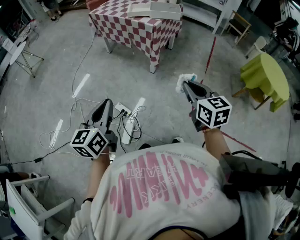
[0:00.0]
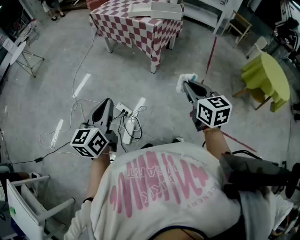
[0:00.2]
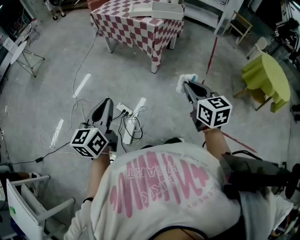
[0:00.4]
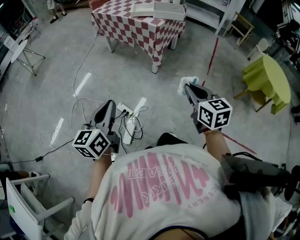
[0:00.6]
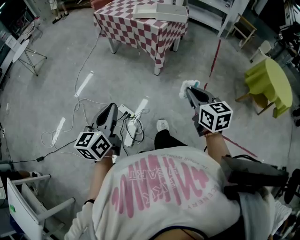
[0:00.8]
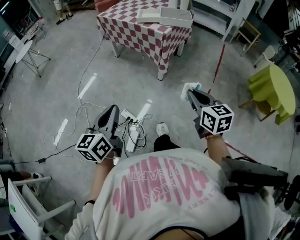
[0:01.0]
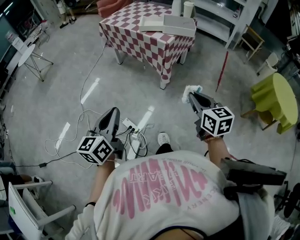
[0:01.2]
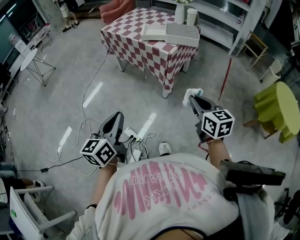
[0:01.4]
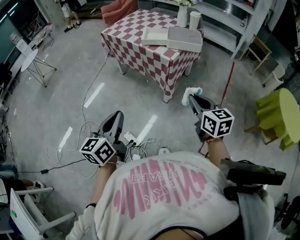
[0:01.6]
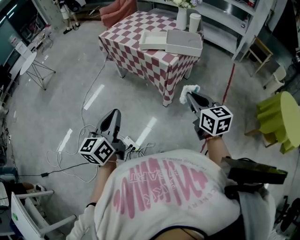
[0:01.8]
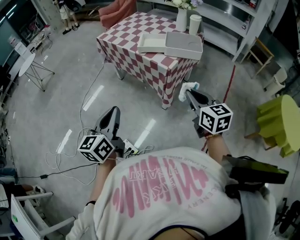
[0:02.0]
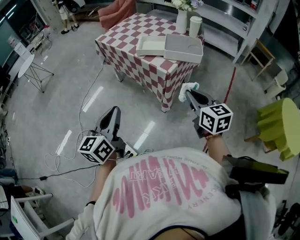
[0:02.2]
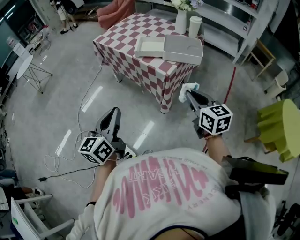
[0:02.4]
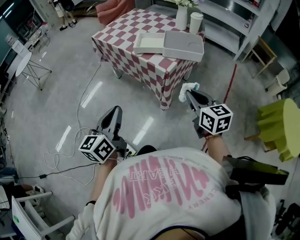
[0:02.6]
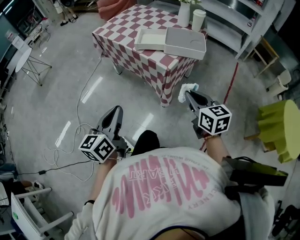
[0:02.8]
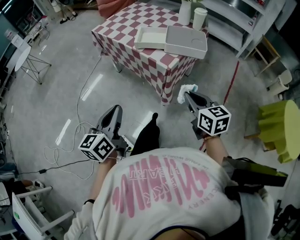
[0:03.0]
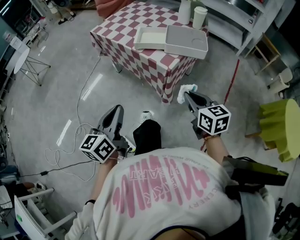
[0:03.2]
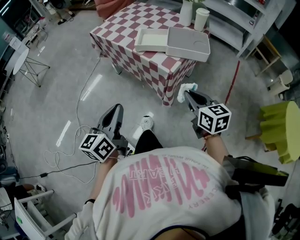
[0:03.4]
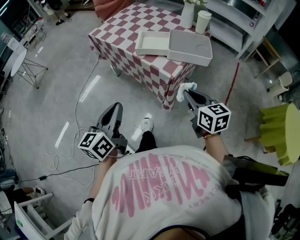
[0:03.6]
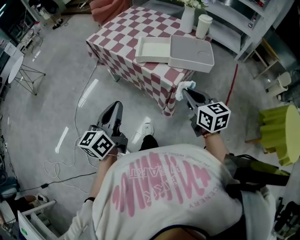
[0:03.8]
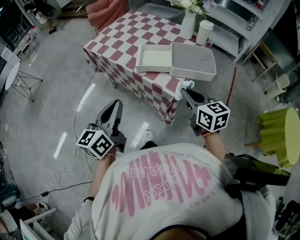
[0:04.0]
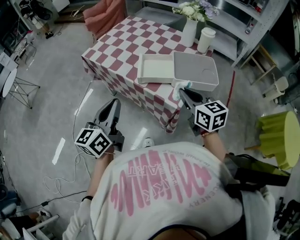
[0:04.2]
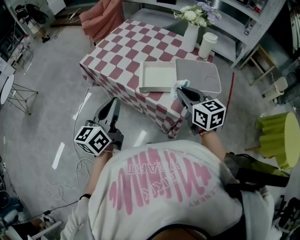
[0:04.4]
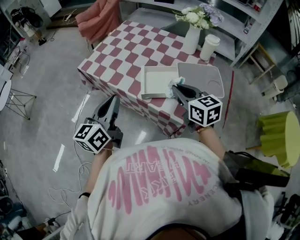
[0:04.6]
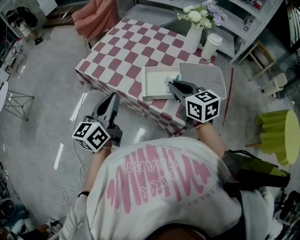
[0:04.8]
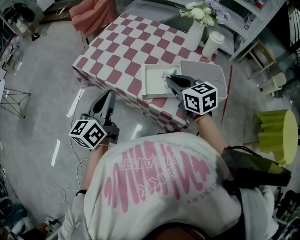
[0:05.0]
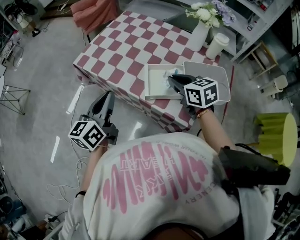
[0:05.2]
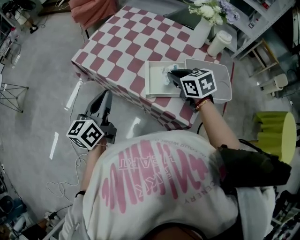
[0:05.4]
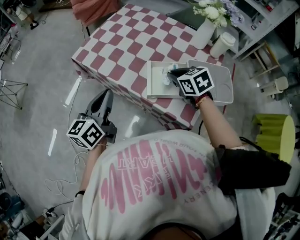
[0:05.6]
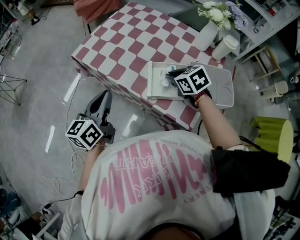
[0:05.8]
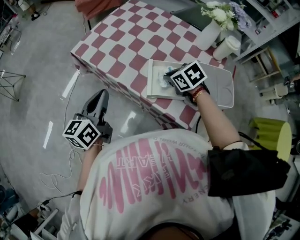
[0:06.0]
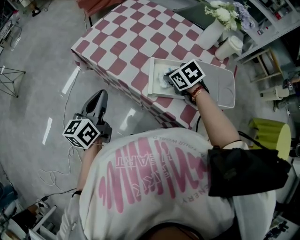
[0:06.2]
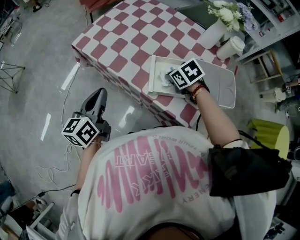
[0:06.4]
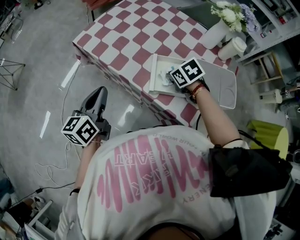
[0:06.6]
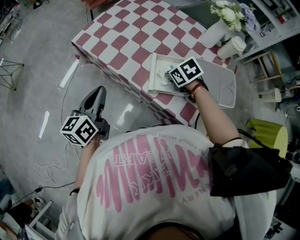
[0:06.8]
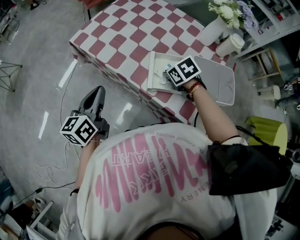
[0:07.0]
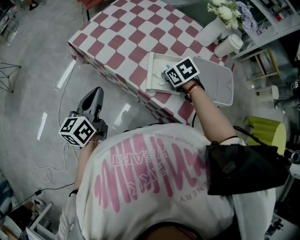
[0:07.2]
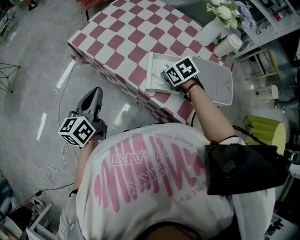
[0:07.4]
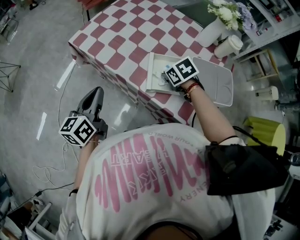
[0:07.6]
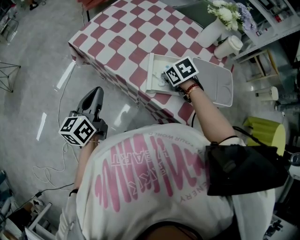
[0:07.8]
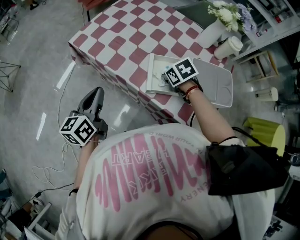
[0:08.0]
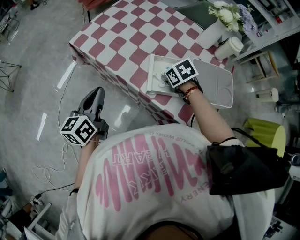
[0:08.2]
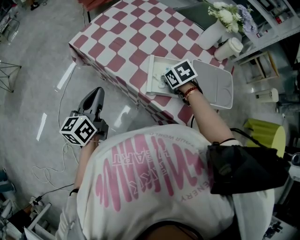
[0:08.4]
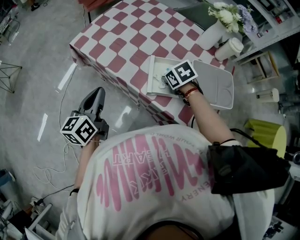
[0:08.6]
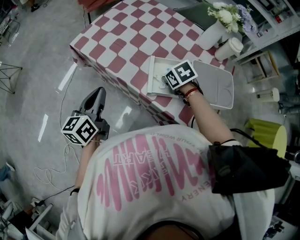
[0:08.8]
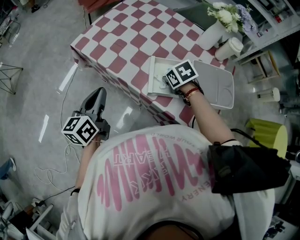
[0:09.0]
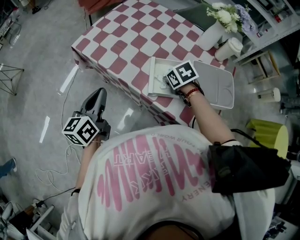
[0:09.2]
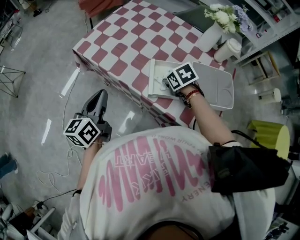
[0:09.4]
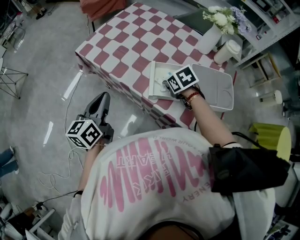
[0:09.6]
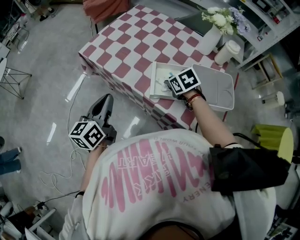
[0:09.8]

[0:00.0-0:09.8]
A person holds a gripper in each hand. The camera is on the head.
0:00.0 to 0:01.4: Both grippers travel together forward, approximately 20 cm.
0:01.4 to 0:02.8: Both grippers travel together forward, roughly 20 cm.
0:02.8 to 0:04.2: The grippers both shift forward by some 30 cm.
0:04.2 to 0:05.6: The grippers both shift forward by roughly 20 cm. The right gripper rotates about 30 degrees.
0:05.6 to 0:07.0: The left gripper ends up some 5 cm from where it was; the right gripper is displaced downward by about 10 cm, and swivels about 20 degrees.
0:07.0 to 0:08.4: The two grippers keep their place.
0:08.4 to 0:09.8: There are only small adjustments of the grippers.

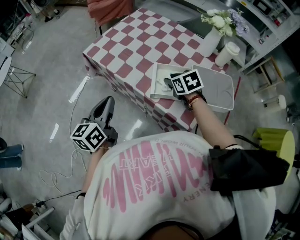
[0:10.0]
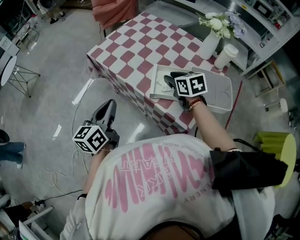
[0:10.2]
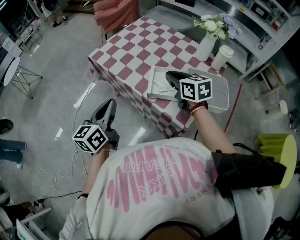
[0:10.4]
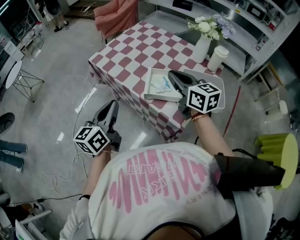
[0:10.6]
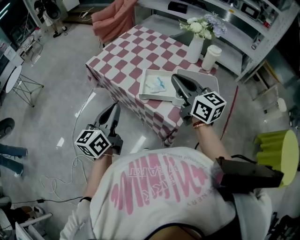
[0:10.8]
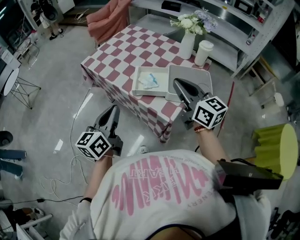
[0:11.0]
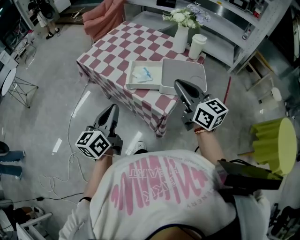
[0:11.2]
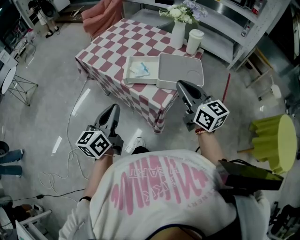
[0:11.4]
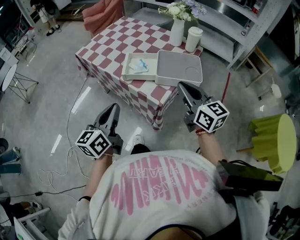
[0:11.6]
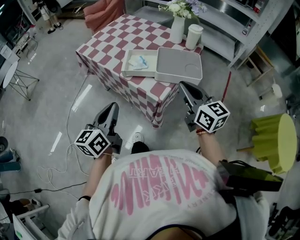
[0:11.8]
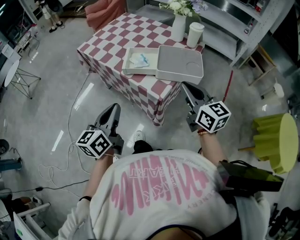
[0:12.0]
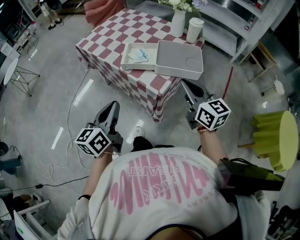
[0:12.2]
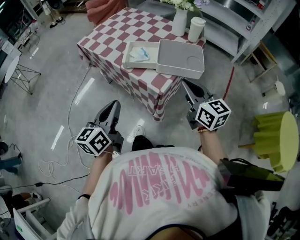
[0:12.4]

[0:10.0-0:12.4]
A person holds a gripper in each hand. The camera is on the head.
0:10.0 to 0:11.2: The left gripper travels backward and to the right by about 20 cm. The right gripper is displaced backward, upward and to the right by some 30 cm, angles its fingers upward, by about 50 degrees, and closes.
0:11.2 to 0:12.4: The right gripper heads backward and downward, covering some 10 cm. Meanwhile the left gripper moves backward, some 10 cm.

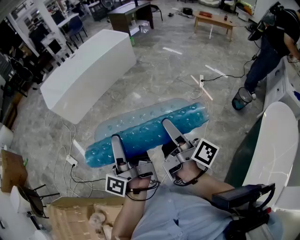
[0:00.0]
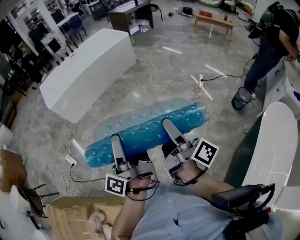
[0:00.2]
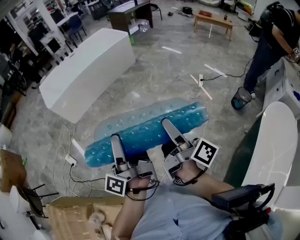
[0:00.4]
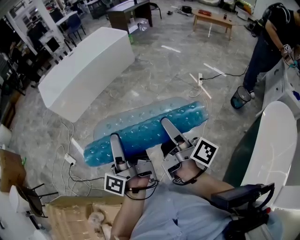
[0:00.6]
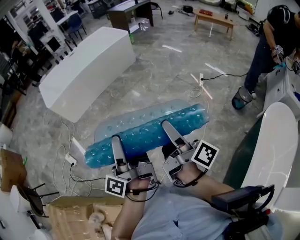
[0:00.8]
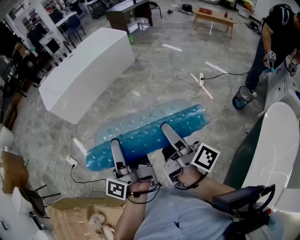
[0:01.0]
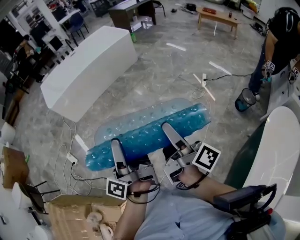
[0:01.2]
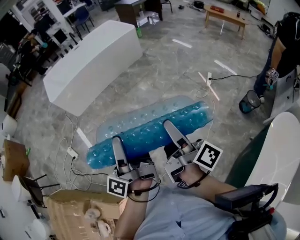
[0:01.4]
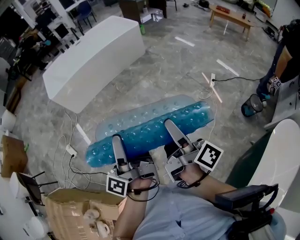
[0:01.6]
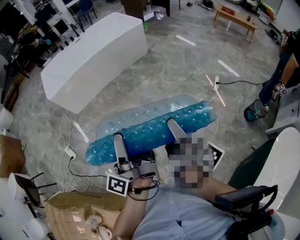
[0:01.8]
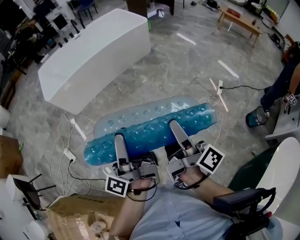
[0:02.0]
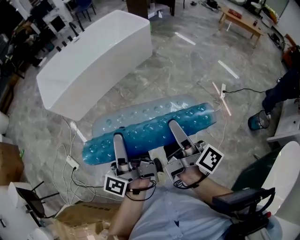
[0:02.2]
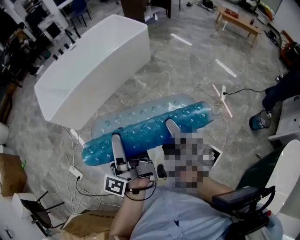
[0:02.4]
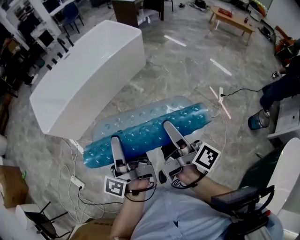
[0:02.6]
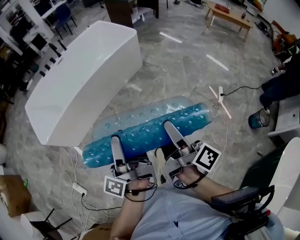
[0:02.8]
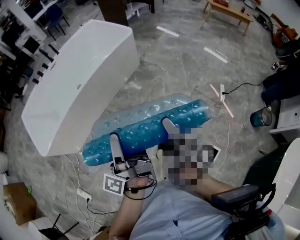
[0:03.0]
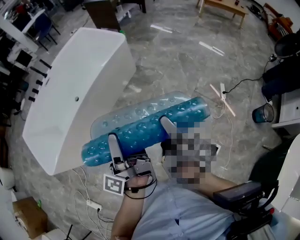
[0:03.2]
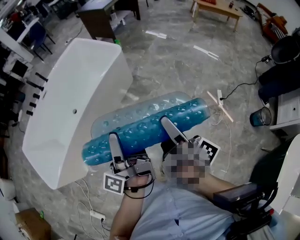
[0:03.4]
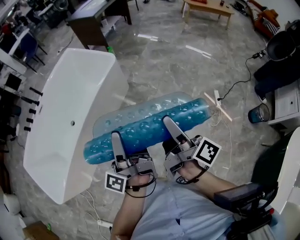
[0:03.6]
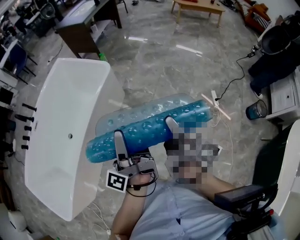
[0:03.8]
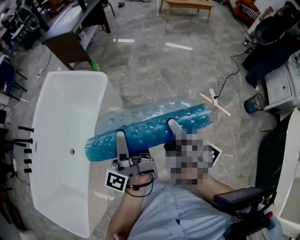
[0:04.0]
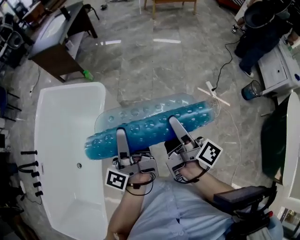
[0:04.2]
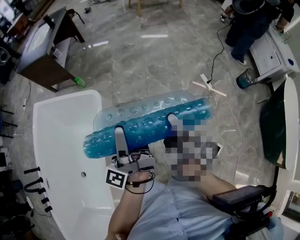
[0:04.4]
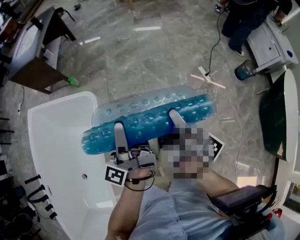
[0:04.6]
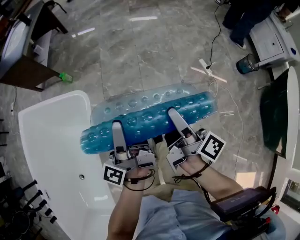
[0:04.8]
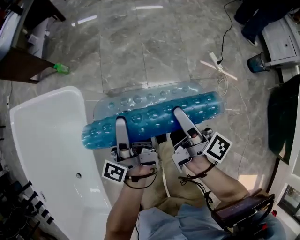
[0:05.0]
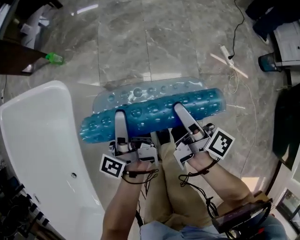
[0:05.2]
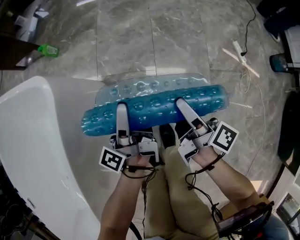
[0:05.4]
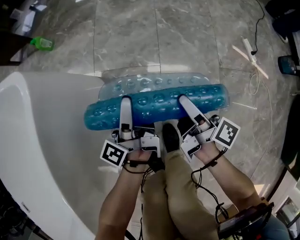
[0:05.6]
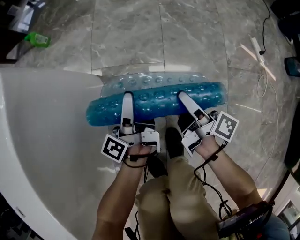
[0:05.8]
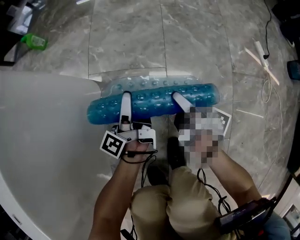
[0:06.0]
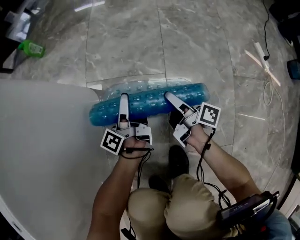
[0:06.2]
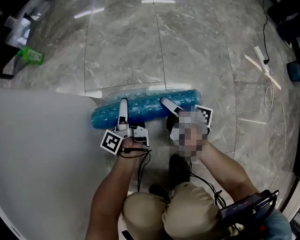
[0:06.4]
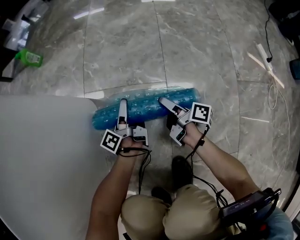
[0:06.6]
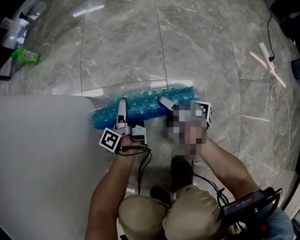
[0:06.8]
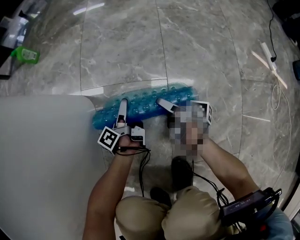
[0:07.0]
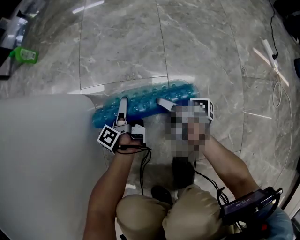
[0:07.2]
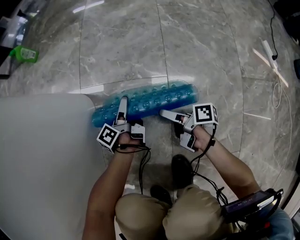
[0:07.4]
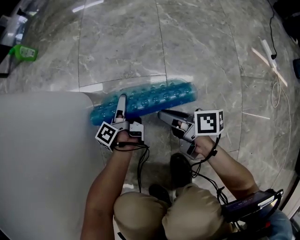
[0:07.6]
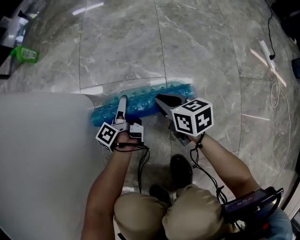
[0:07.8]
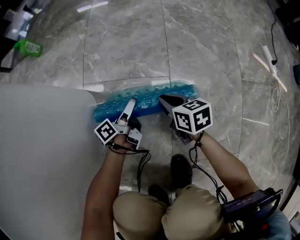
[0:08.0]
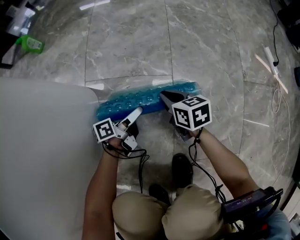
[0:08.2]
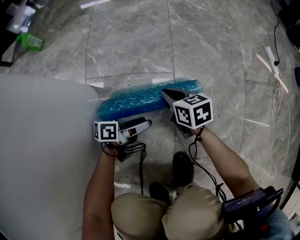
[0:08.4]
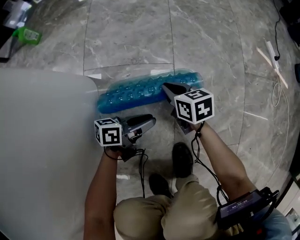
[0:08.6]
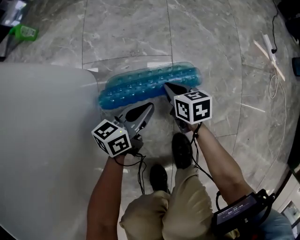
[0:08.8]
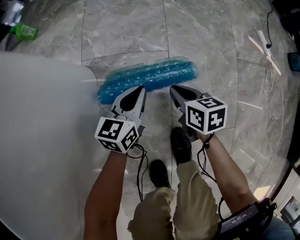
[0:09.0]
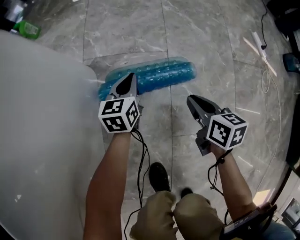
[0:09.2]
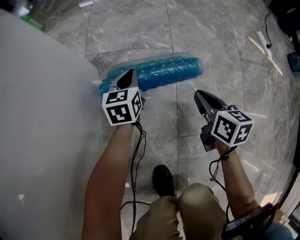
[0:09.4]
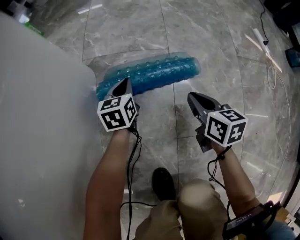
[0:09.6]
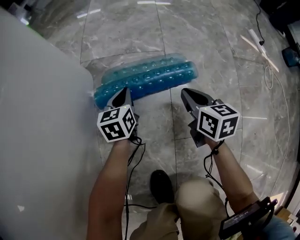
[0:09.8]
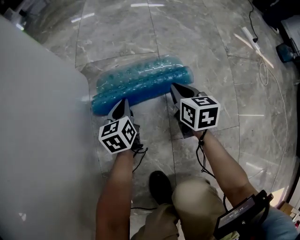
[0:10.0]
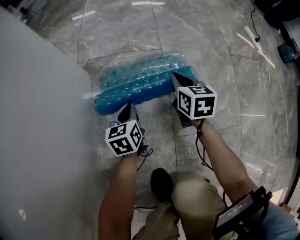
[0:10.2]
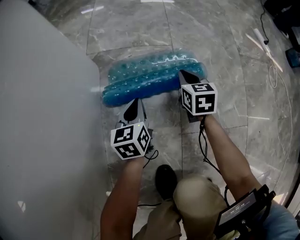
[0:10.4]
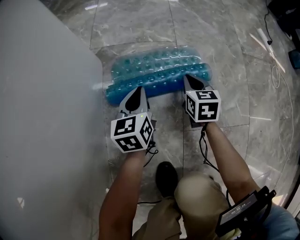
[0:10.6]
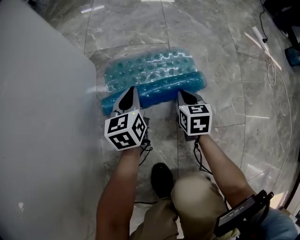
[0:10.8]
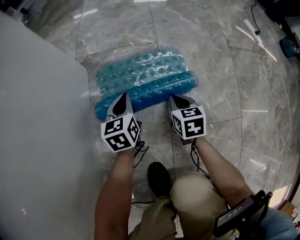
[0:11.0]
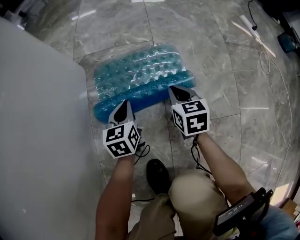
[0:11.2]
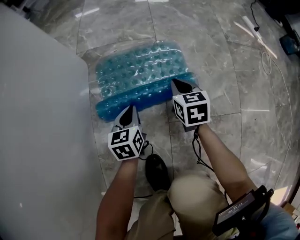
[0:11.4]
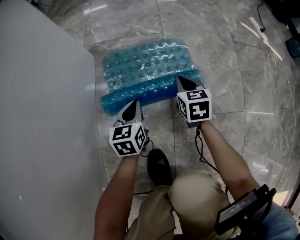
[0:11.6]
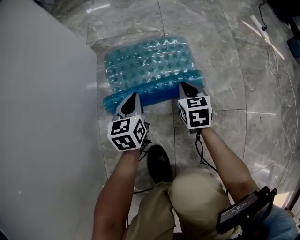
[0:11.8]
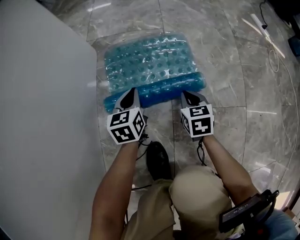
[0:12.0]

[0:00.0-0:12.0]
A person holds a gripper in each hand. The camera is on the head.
0:00.0 to 0:01.6: Both grippers travel together forward, approximately 5 cm.
0:01.6 to 0:03.0: The two grippers travel together, forward, about 60 cm.
0:03.0 to 0:04.4: Both grippers are carried roughly 50 cm. The left gripper changes its angle by approximately 40 degrees; the right gripper turns by roughly 40 degrees.
0:04.4 to 0:06.0: The two grippers go some 80 cm downward. The right gripper turns by about 20 degrees.
0:06.0 to 0:07.6: The left gripper goes about 20 cm downward; the right gripper is displaced downward by approximately 10 cm, swivels roughly 30 degrees, and closes up.
0:07.6 to 0:09.0: The left gripper travels upward by approximately 15 cm, rotates around the line of its fingers by approximately 70 degrees, clockwise from behind, and closes up. Meanwhile the right gripper turns by roughly 40 degrees.
0:09.0 to 0:10.4: The left gripper heads downward and backward, covering some 15 cm, and turns by some 20 degrees. Meanwhile the right gripper travels downward by about 5 cm, and swivels about 30 degrees.
0:10.4 to 0:12.0: The left gripper shifts about 5 cm backward. Meanwhile the right gripper moves backward, some 20 cm.
